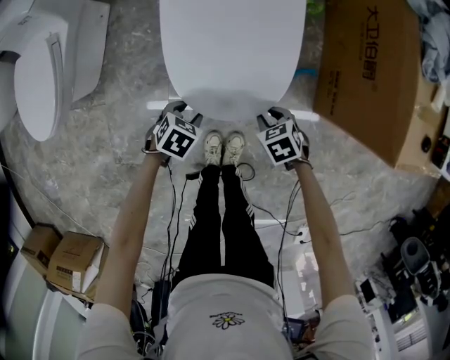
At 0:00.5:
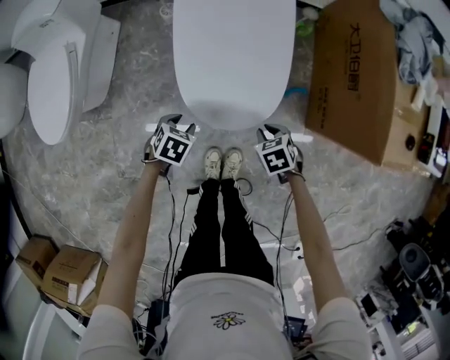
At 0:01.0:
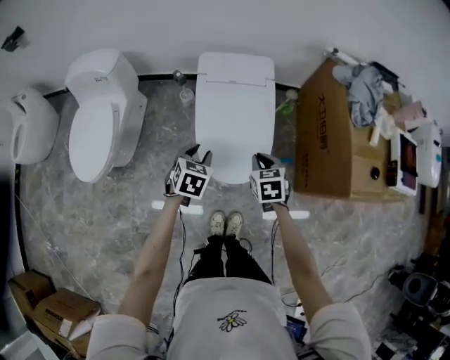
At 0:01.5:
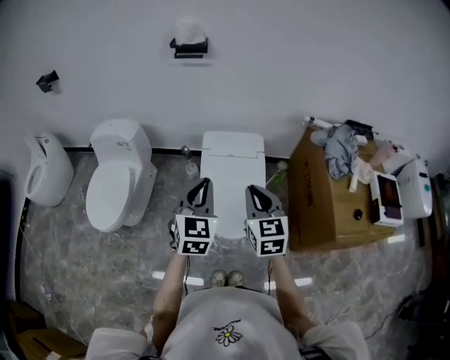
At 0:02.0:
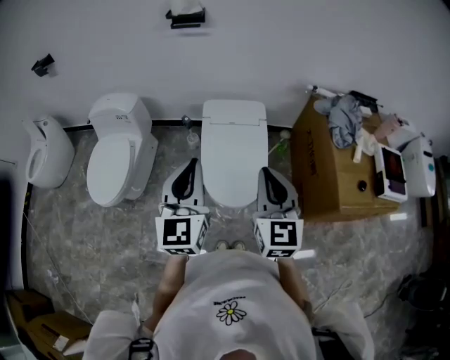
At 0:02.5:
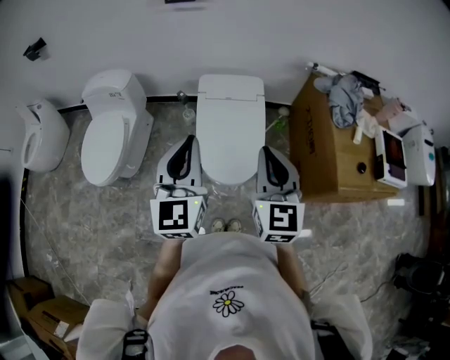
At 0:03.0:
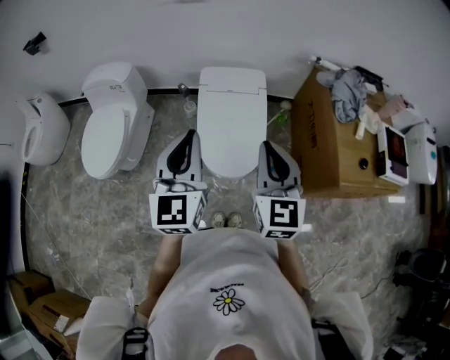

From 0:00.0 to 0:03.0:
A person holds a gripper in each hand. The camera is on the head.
From 0:00.0 to 0:01.5: Both grippers travel together upward, roughly 60 cm. The right gripper tips its fingers upward by some 50 degrees; the left gripper tips its fingers upward by about 60 degrees, and closes up.
From 0:01.5 to 0:03.0: The two grippers go approximately 10 cm backward and upward.

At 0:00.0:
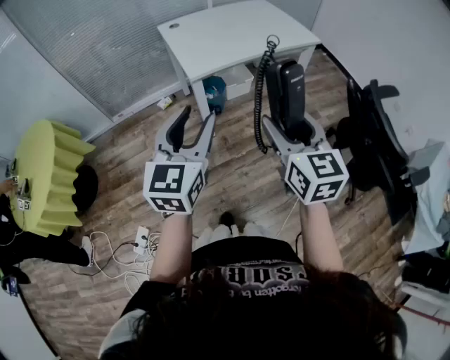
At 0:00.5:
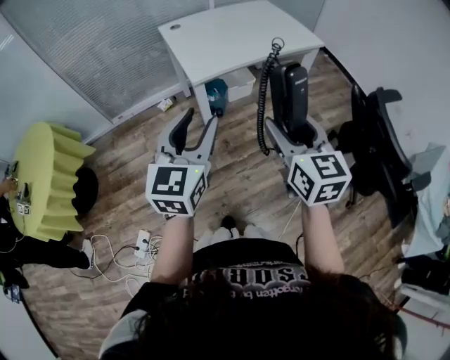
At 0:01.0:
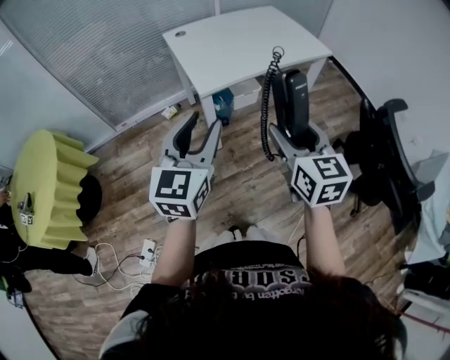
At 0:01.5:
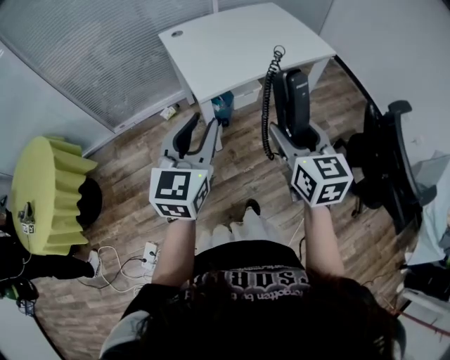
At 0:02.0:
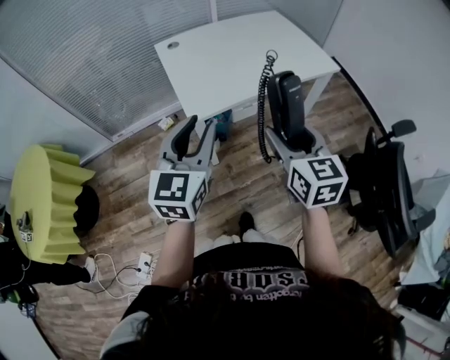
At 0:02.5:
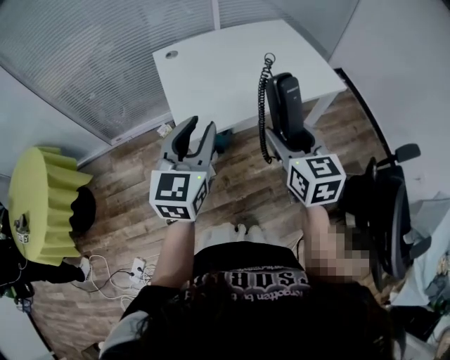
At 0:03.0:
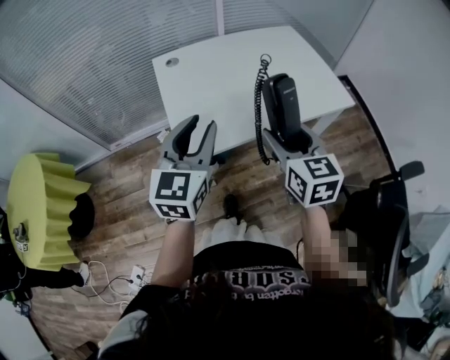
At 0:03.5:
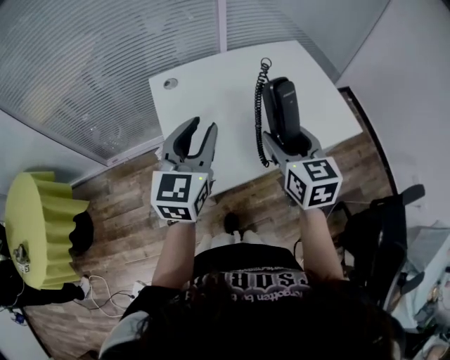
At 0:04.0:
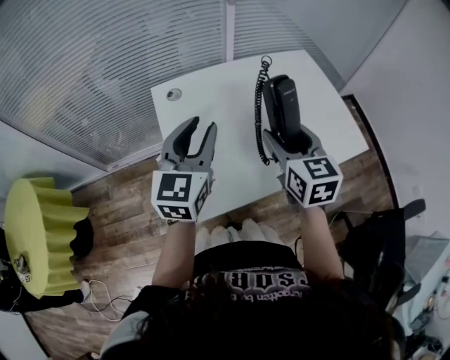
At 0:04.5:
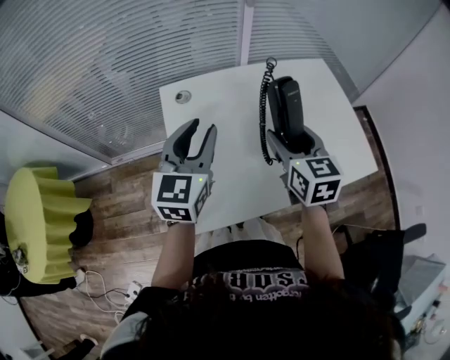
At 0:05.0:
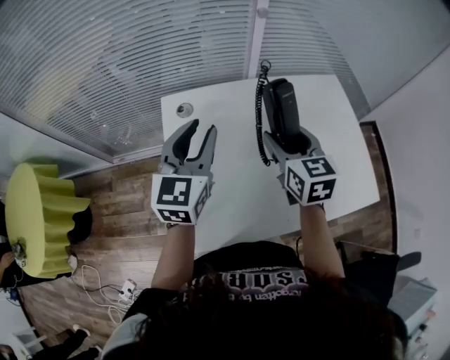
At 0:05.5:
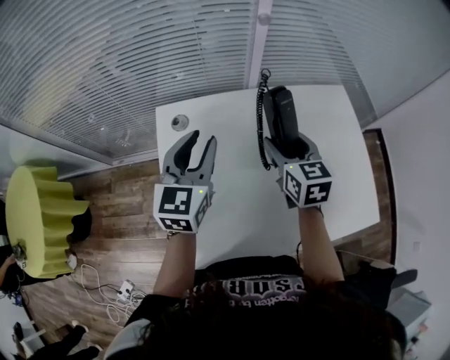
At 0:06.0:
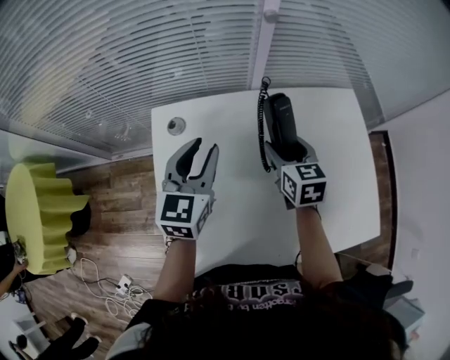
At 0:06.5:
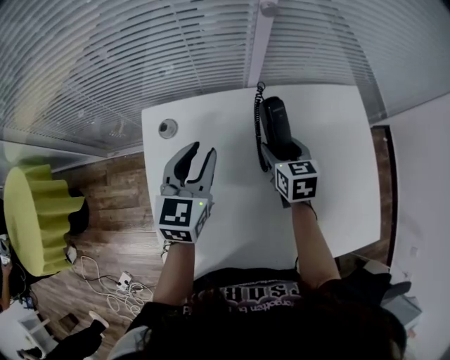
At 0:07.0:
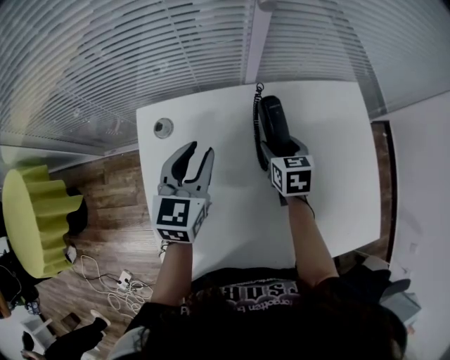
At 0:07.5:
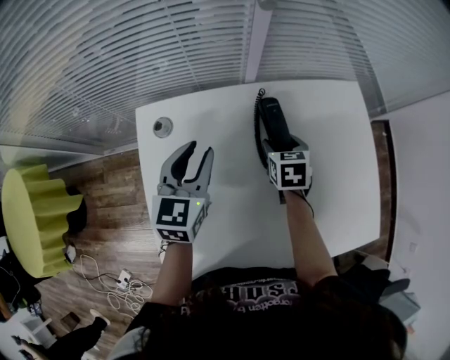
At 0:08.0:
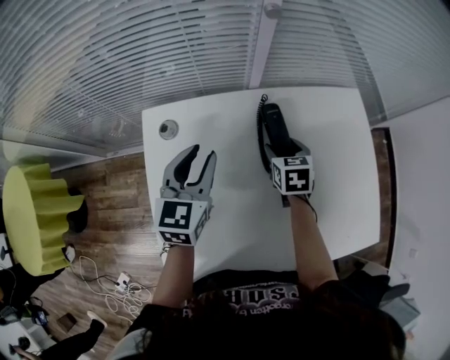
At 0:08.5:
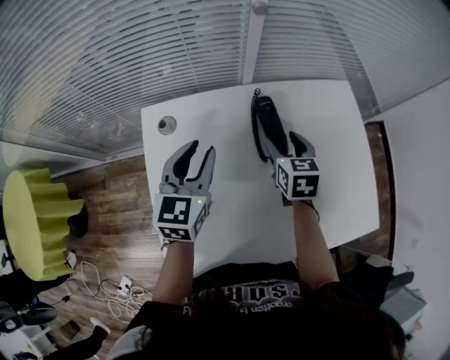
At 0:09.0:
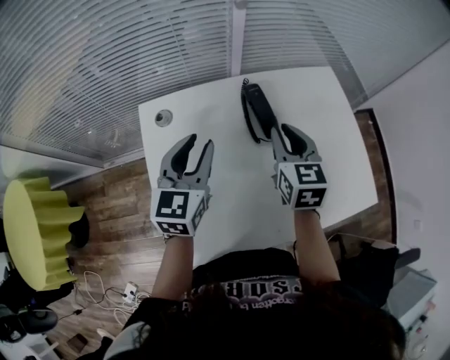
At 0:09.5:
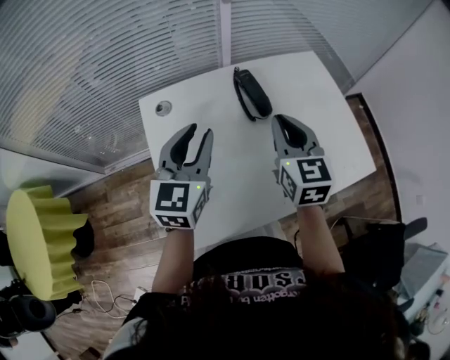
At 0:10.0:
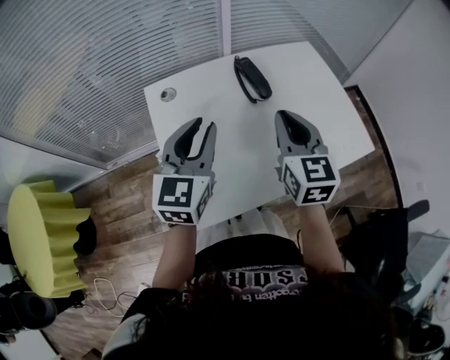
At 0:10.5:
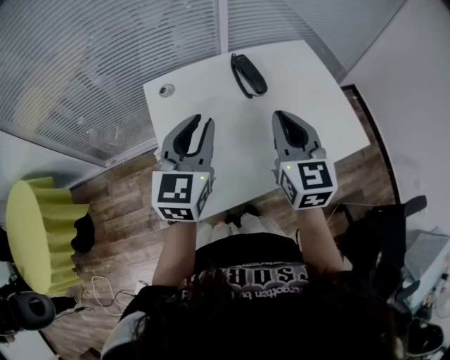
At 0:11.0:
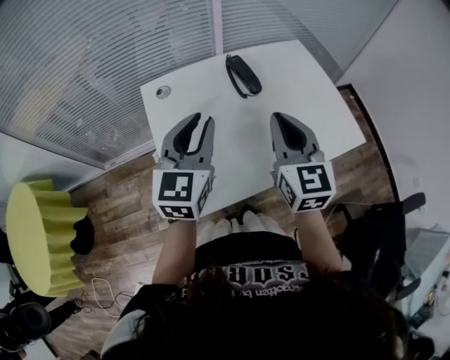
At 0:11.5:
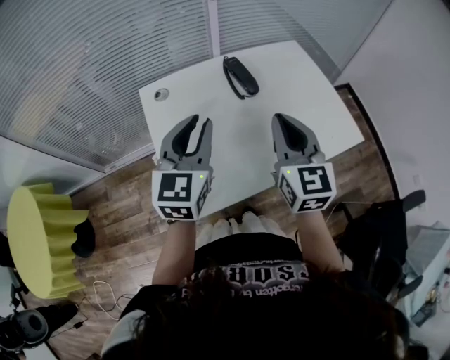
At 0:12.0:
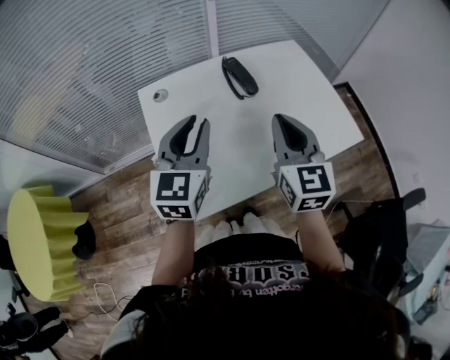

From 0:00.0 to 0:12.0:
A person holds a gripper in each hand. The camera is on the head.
From 0:00.0 to 0:02.0: The two grippers go roughly 20 cm forward.
From 0:02.0 to 0:04.0: Both grippers move forward, some 35 cm.
From 0:04.0 to 0:06.0: The two grippers go approximately 25 cm forward and downward.
From 0:06.0 to 0:08.0: The right gripper is displaced downward by about 10 cm.
From 0:08.0 to 0:10.0: The left gripper moves backward and upward, approximately 20 cm. The right gripper travels backward and upward by some 35 cm, points its fingers some 40 degrees further upward, and closes its fingers.
From 0:10.0 to 0:12.0: The right gripper shifts about 5 cm backward.

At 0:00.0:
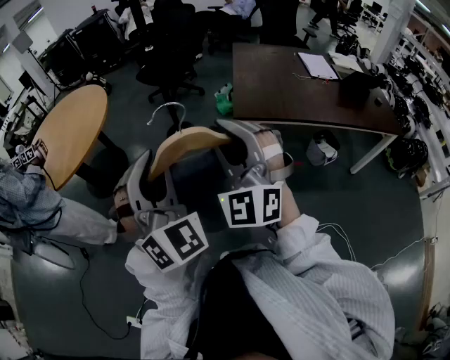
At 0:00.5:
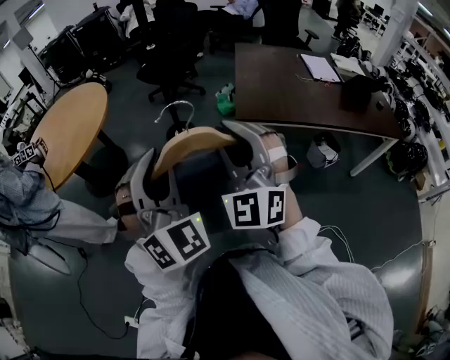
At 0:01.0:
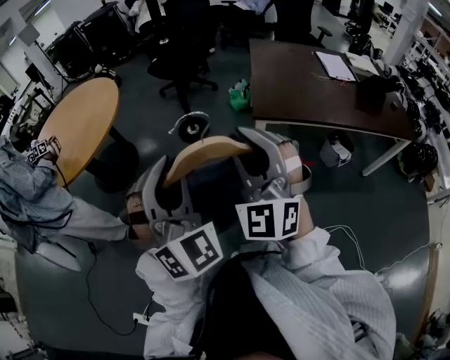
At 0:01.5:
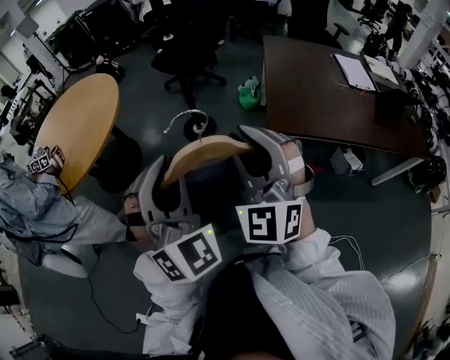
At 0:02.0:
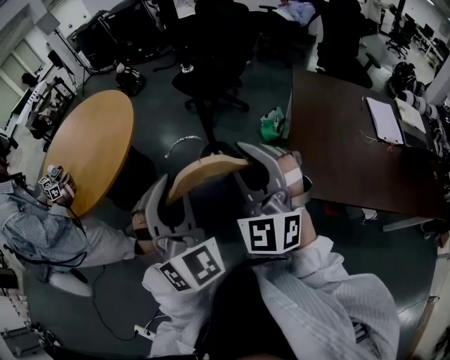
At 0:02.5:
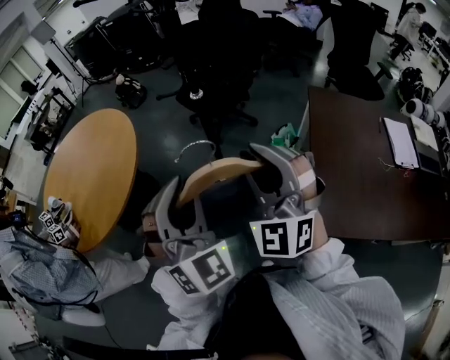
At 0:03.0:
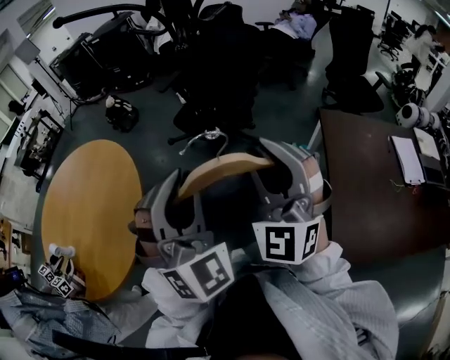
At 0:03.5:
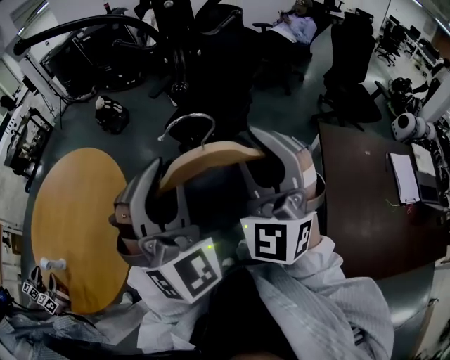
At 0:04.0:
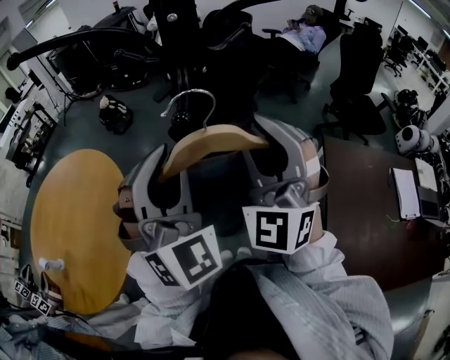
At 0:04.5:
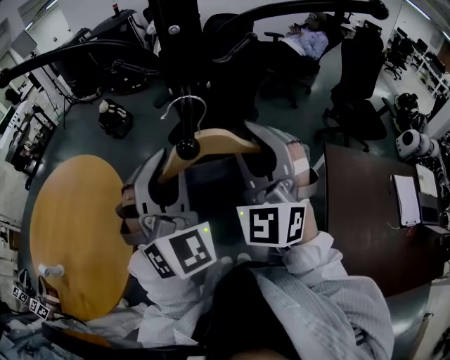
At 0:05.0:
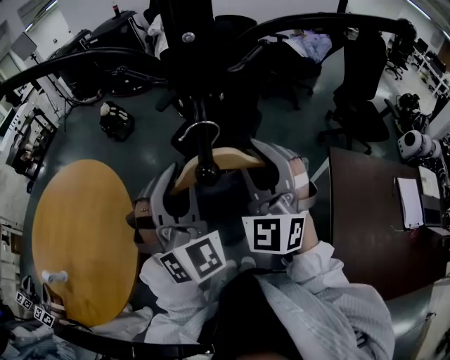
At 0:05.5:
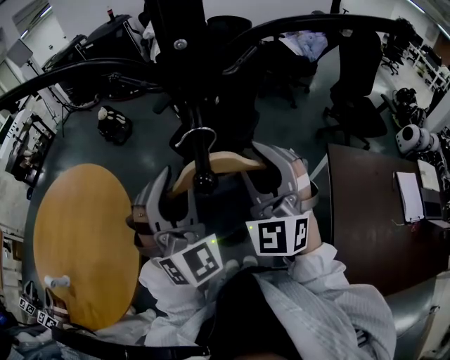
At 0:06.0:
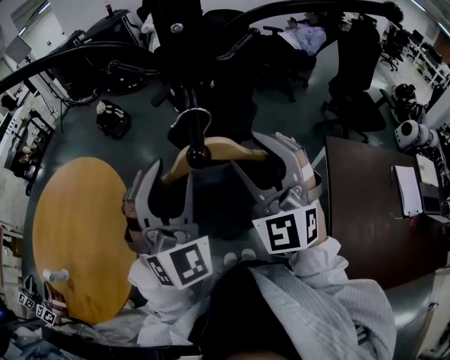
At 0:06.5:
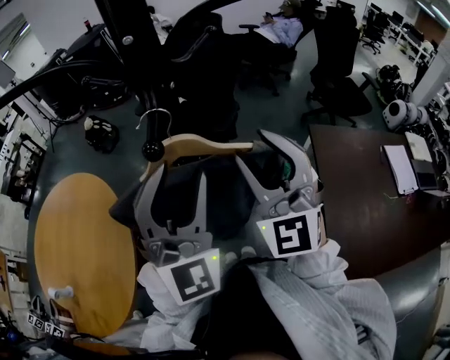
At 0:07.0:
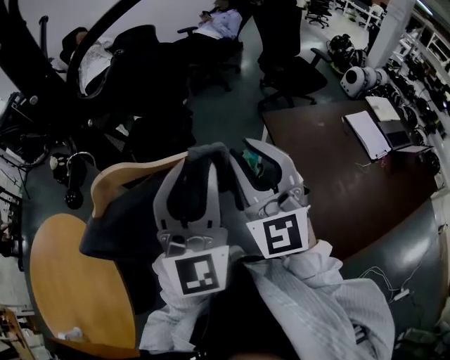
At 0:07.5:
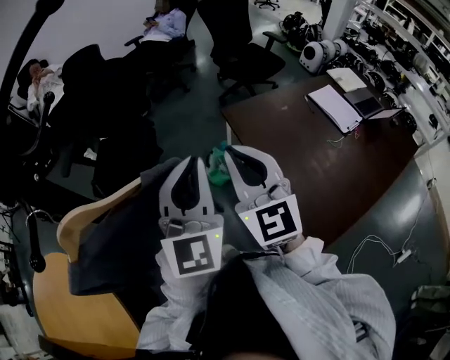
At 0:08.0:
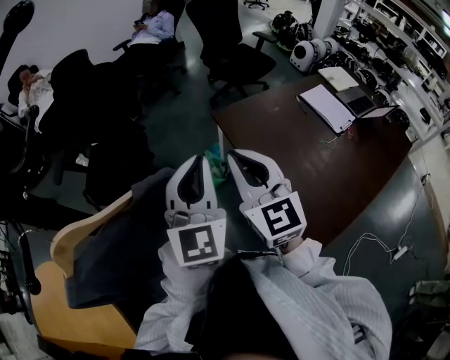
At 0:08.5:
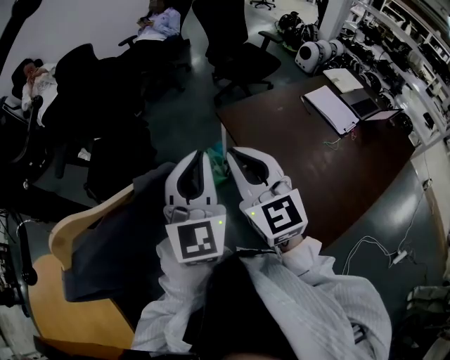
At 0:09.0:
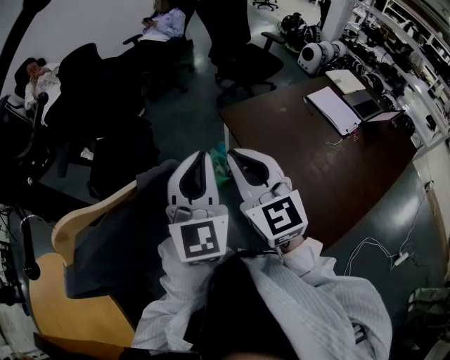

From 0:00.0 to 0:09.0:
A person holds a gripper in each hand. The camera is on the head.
From 0:00.0 to 0:02.0: Both grippers move forward, roughly 40 cm.
From 0:02.0 to 0:04.5: Both grippers are carried forward, some 60 cm.
From 0:04.5 to 0:07.0: The right gripper ends up approximately 15 cm from where it was, changes its angle by some 30 degrees, and opens, then closes once more; the left gripper moves roughly 20 cm, and swivels about 50 degrees.
From 0:07.0 to 0:09.0: The left gripper heads to the right, downward and forward, covering roughly 15 cm, turns by some 20 degrees, and closes its fingers; the right gripper is displaced to the right and downward by roughly 15 cm, rotates some 20 degrees, and closes up.

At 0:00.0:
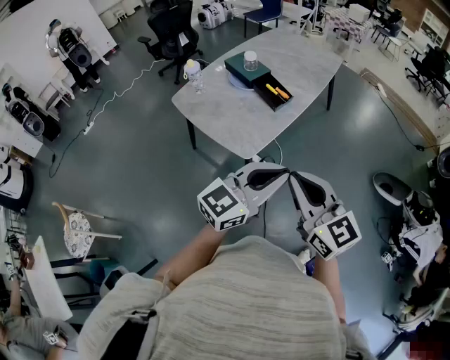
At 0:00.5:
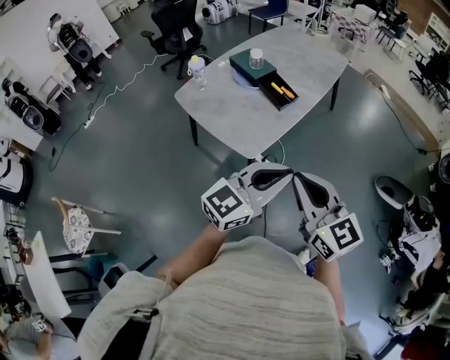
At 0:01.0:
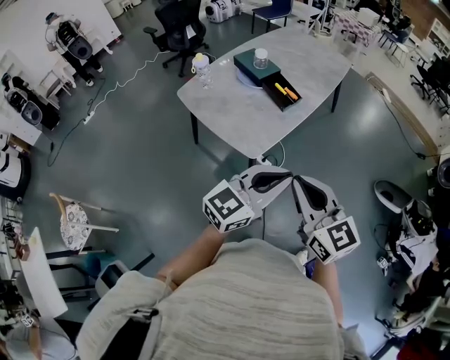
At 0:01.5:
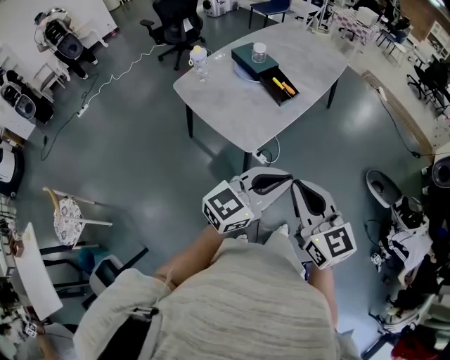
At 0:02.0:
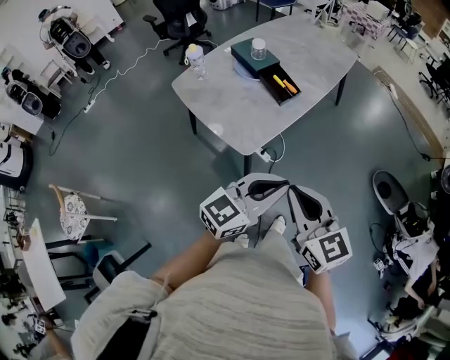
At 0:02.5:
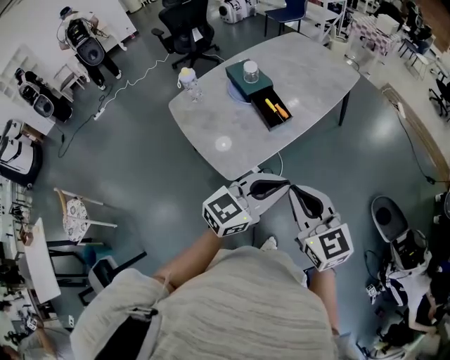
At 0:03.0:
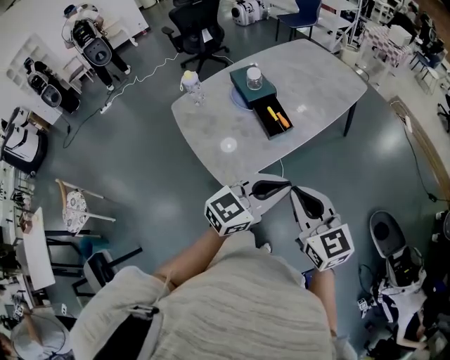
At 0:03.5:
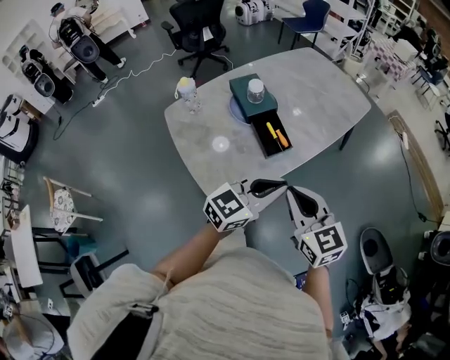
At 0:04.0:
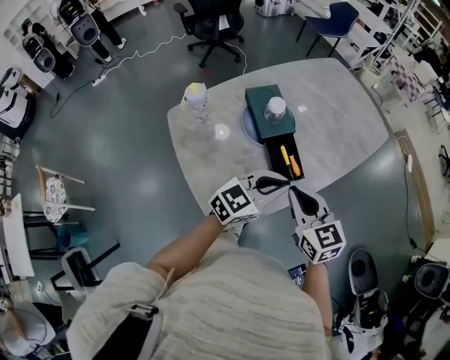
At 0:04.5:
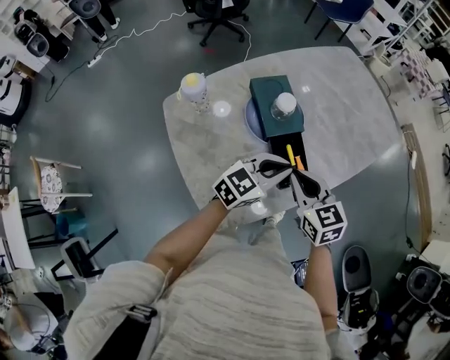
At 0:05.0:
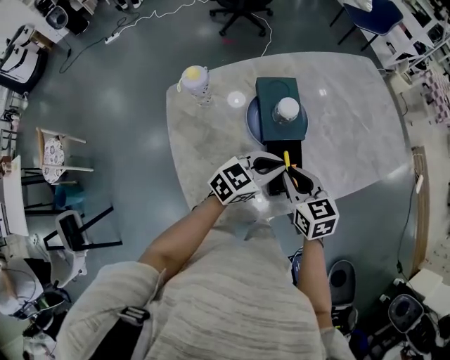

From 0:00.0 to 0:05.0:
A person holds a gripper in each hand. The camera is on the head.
From 0:00.0 to 0:02.5: Both grippers move forward and to the right, some 15 cm.
From 0:02.5 to 0:05.0: The pair of grippers is taken forward, some 50 cm. The left gripper swivels approximately 20 degrees, while the right gripper changes its angle by approximately 30 degrees.
